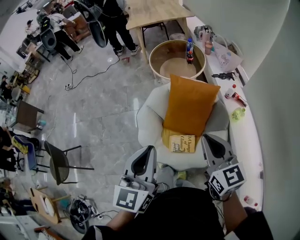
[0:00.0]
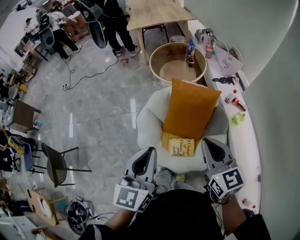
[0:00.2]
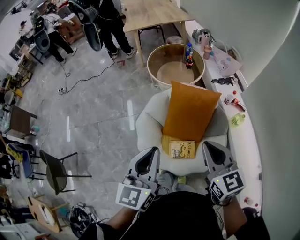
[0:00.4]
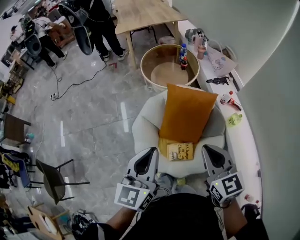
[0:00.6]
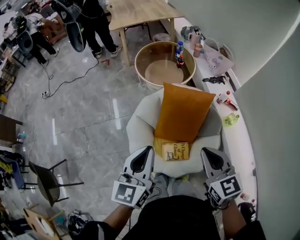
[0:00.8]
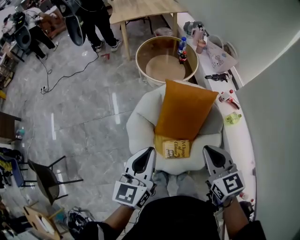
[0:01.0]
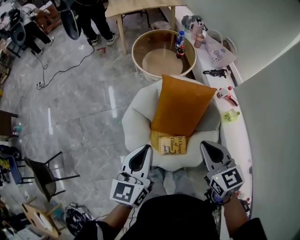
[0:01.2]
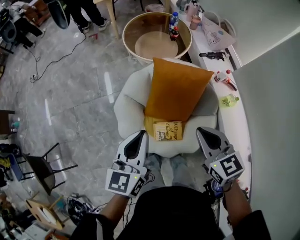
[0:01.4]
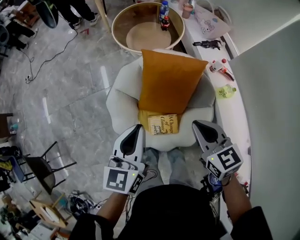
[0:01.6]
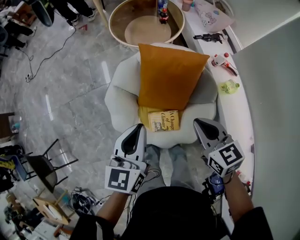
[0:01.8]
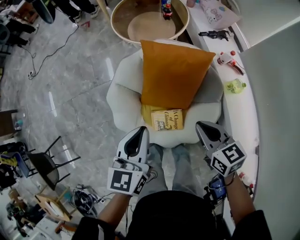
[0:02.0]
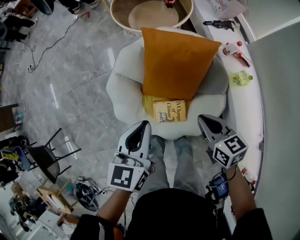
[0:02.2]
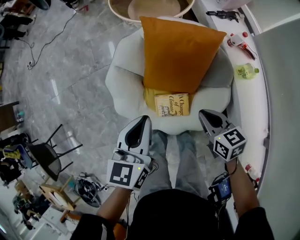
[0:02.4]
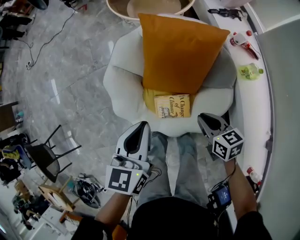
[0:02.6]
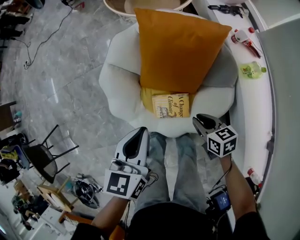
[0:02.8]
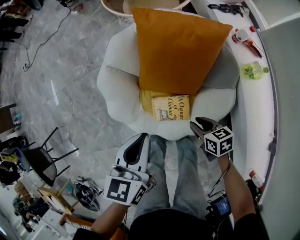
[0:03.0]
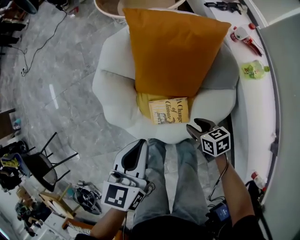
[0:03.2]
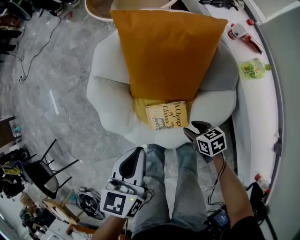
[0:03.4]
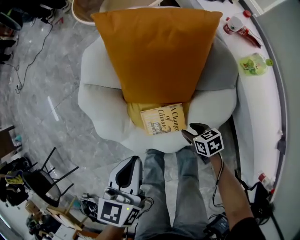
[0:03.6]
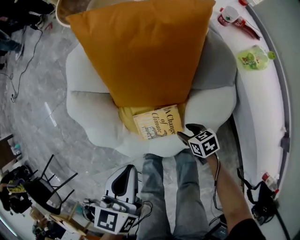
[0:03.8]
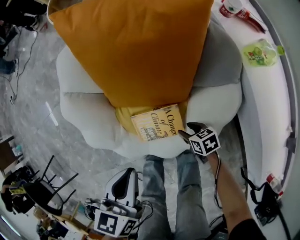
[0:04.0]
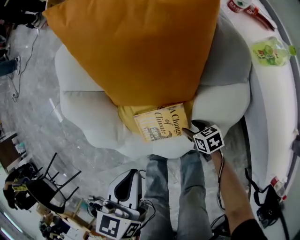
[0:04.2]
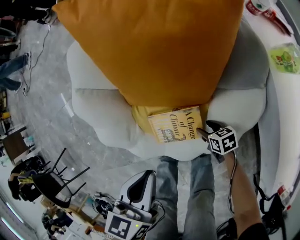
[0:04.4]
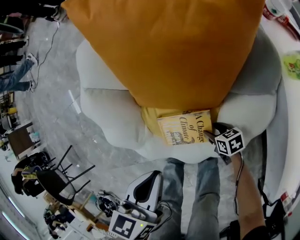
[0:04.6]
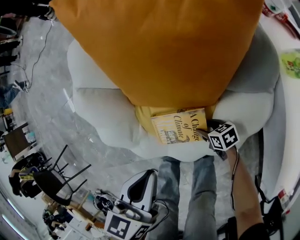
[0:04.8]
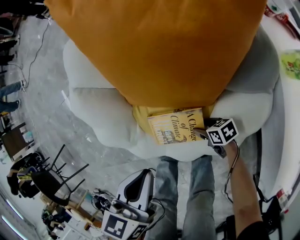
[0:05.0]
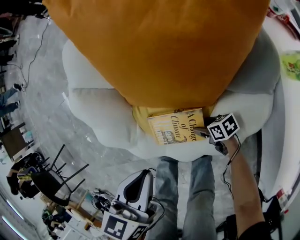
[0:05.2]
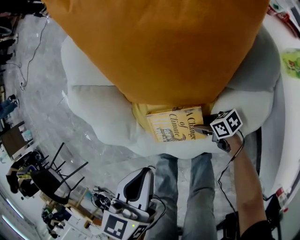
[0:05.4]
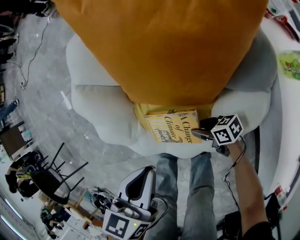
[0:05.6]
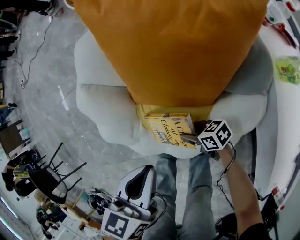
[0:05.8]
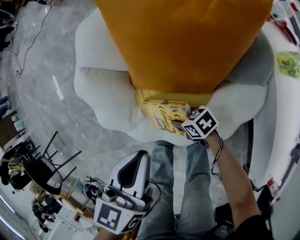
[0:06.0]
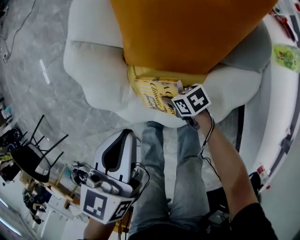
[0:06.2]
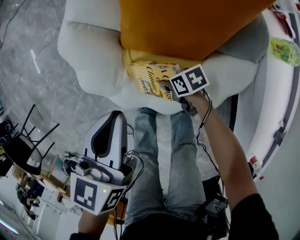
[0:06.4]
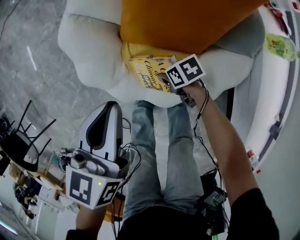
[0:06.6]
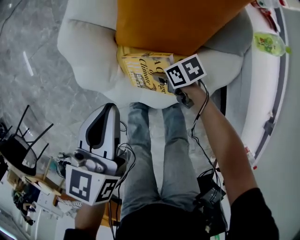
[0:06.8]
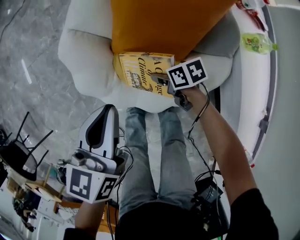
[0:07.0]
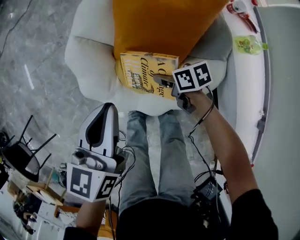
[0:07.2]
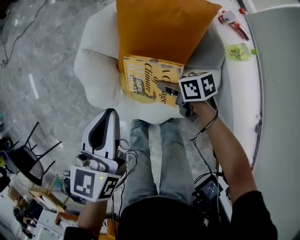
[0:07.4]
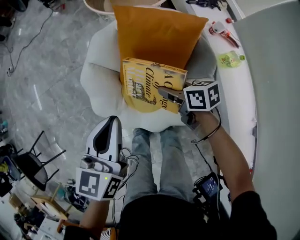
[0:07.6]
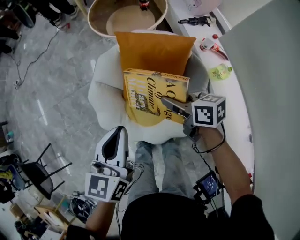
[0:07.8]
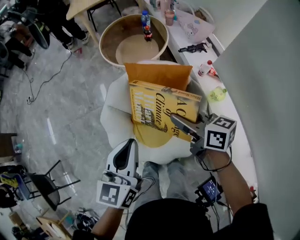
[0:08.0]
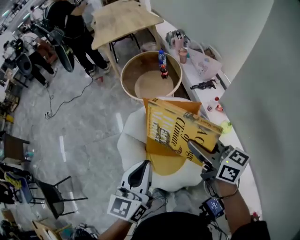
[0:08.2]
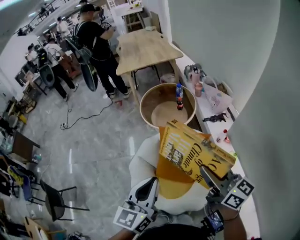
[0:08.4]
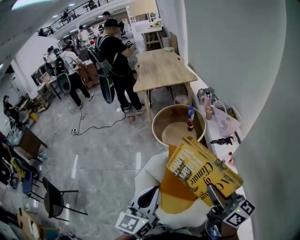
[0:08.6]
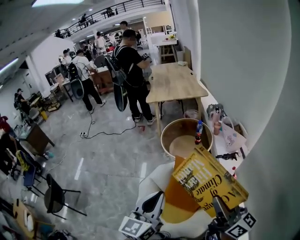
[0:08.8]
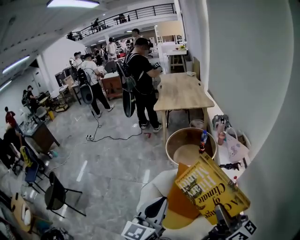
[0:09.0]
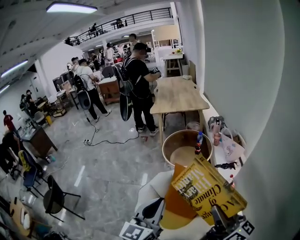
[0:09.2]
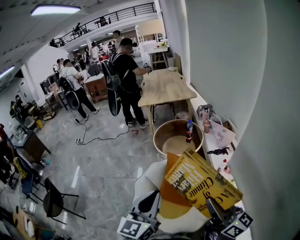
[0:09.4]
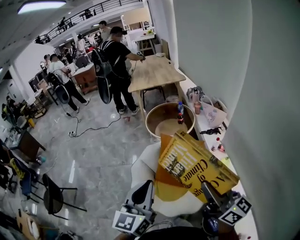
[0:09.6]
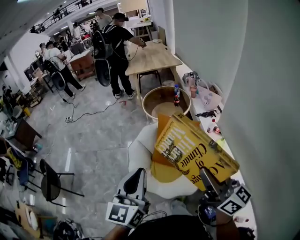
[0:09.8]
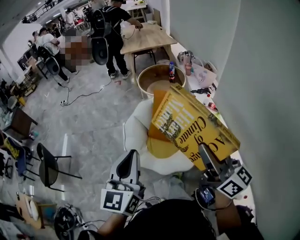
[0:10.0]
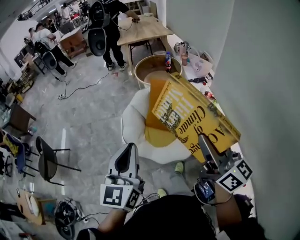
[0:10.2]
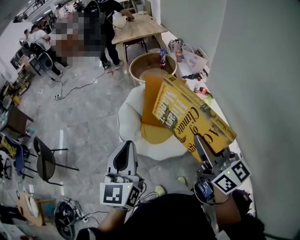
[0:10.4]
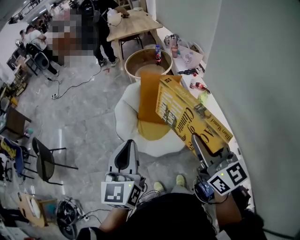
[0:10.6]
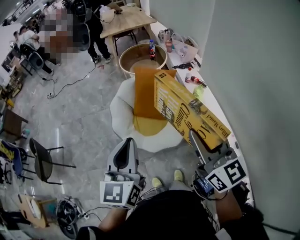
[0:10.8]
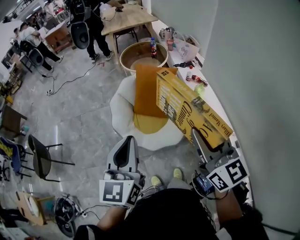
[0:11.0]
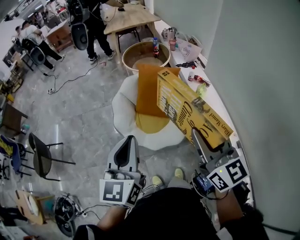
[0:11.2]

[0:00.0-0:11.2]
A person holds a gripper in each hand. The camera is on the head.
0.0 to 1.6 s: The two grippers go roughly 20 cm forward and downward. The right gripper changes its angle by some 20 degrees.
1.6 to 3.2 s: The left gripper goes roughly 20 cm downward; the right gripper heads downward, covering some 40 cm, rotates approximately 30 degrees, and opens up.
3.2 to 4.8 s: The left gripper moves downward, some 15 cm. The right gripper shifts roughly 30 cm downward.
4.8 to 6.4 s: The right gripper travels to the left, upward and forward by about 15 cm, and closes, while the left gripper is displaced upward and forward by approximately 10 cm.
6.4 to 8.0 s: The left gripper moves upward, some 35 cm, and turns by roughly 20 degrees. The right gripper travels upward by about 60 cm, and tips its fingers upward by roughly 30 degrees.
8.0 to 9.6 s: Both grippers move upward and backward, approximately 35 cm. The right gripper tilts its fingers roughly 30 degrees upward. Meanwhile the left gripper swivels approximately 30 degrees.
9.6 to 11.2 s: Both grippers move backward, approximately 25 cm. The right gripper turns by about 30 degrees.

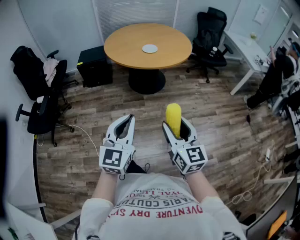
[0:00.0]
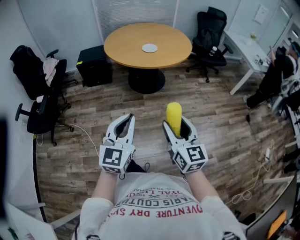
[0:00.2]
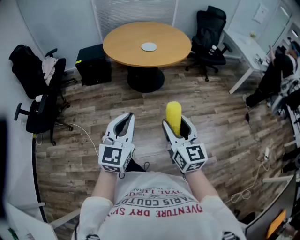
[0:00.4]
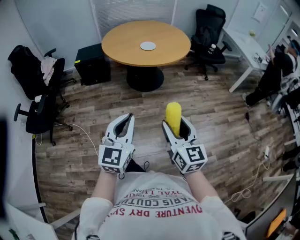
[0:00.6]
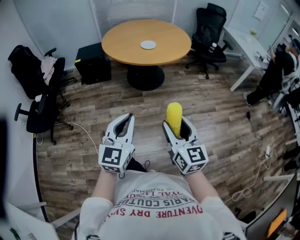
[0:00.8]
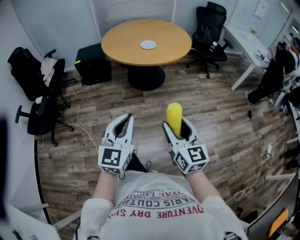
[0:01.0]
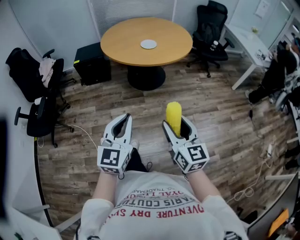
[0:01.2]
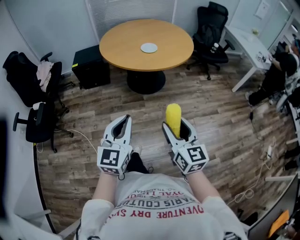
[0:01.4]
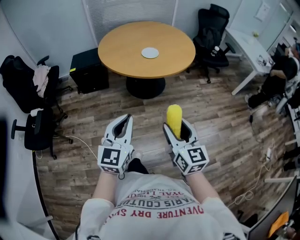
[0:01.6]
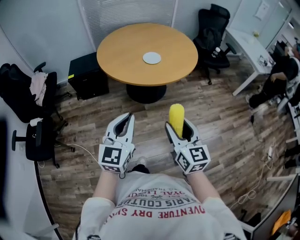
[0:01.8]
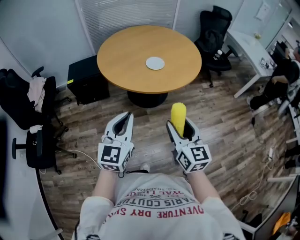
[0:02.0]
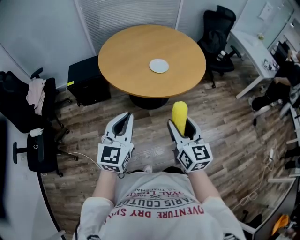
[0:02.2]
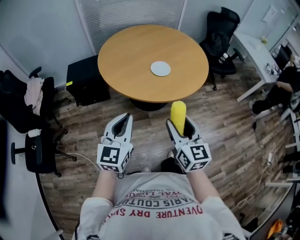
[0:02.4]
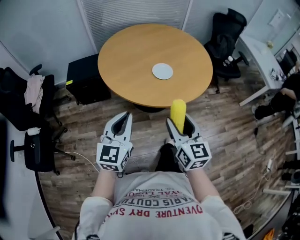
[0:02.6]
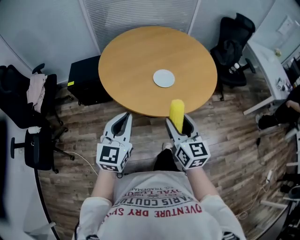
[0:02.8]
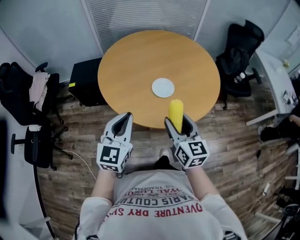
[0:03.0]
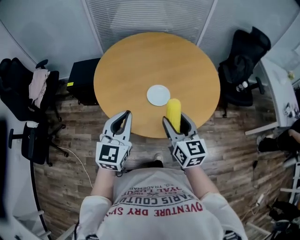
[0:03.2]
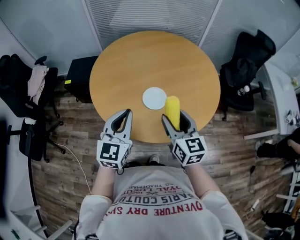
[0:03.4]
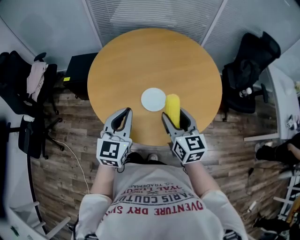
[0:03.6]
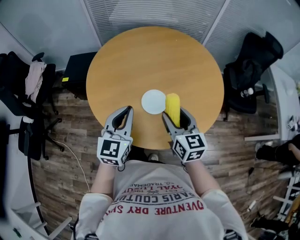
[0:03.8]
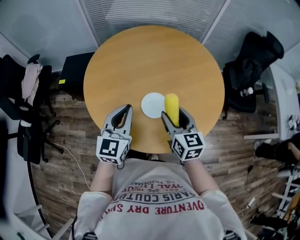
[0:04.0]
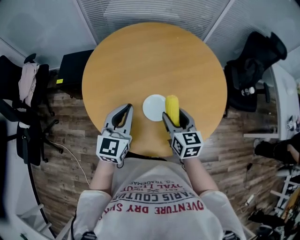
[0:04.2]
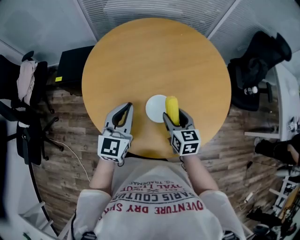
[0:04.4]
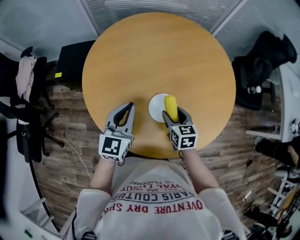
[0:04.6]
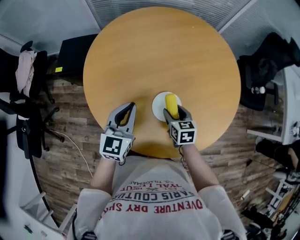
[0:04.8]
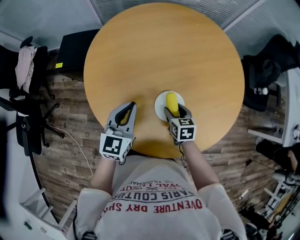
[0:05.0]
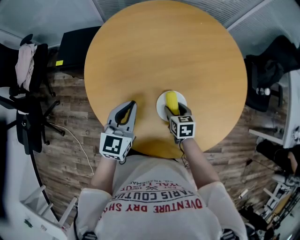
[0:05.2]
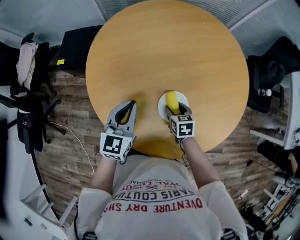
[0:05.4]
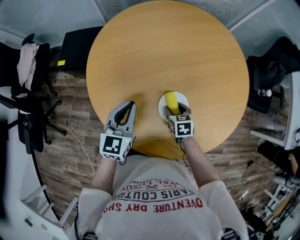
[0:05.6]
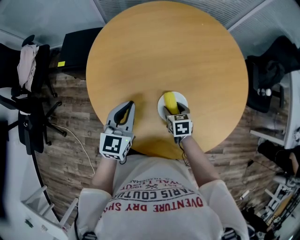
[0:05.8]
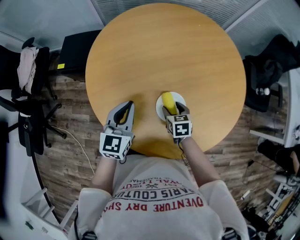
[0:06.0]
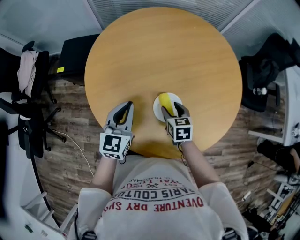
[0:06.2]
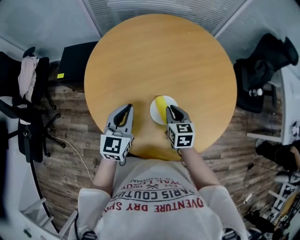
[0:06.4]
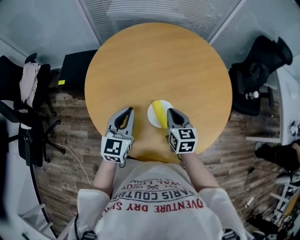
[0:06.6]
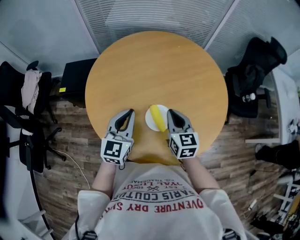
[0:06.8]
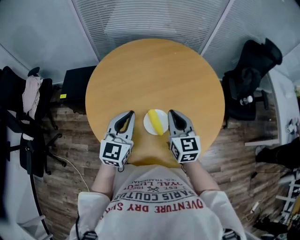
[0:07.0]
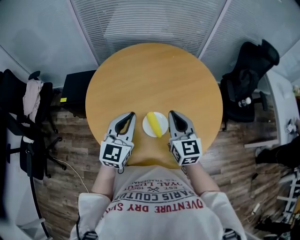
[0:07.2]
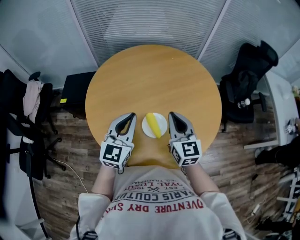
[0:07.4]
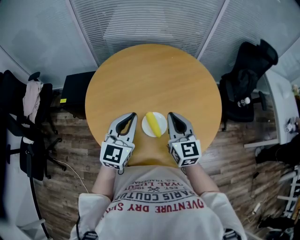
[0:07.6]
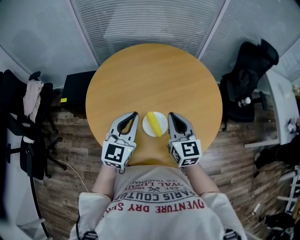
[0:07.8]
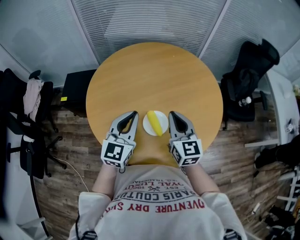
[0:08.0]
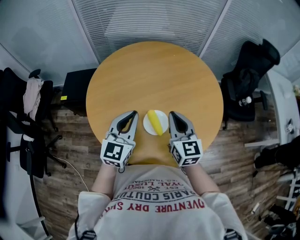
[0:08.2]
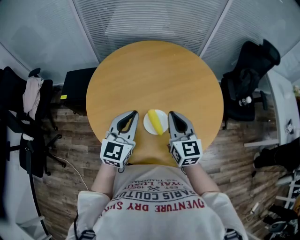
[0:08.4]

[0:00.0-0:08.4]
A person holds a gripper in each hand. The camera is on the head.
0.0 to 1.4 s: Both grippers move forward, some 10 cm.
1.4 to 2.8 s: The pair of grippers is taken forward, some 40 cm.
2.8 to 4.2 s: Both grippers travel together forward, approximately 30 cm.
4.2 to 5.6 s: The left gripper heads downward, to the left and forward, covering some 10 cm. Meanwhile the right gripper goes roughly 20 cm downward, and changes its angle by approximately 30 degrees.
5.6 to 7.0 s: The left gripper moves upward and to the right, approximately 15 cm. Meanwhile the right gripper heads upward, covering roughly 25 cm, angles its fingers upward, by roughly 40 degrees, and closes its fingers.
7.0 to 8.4 s: There are only small adjustments of the grippers.

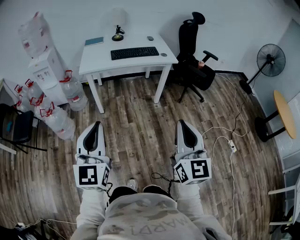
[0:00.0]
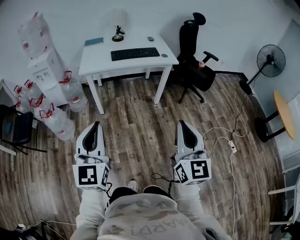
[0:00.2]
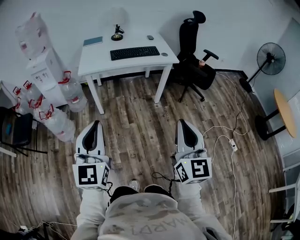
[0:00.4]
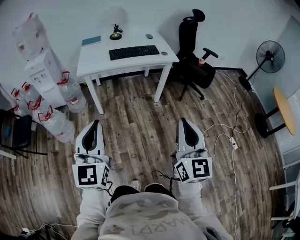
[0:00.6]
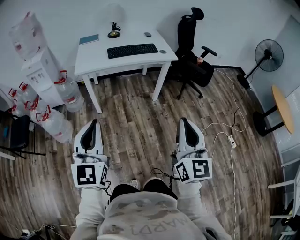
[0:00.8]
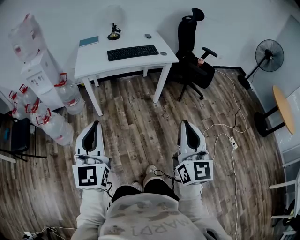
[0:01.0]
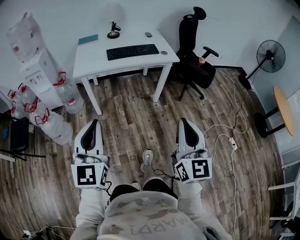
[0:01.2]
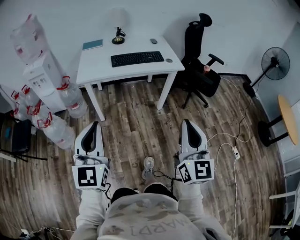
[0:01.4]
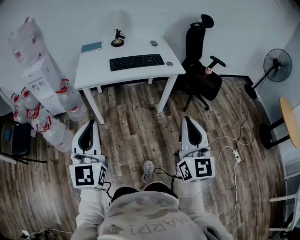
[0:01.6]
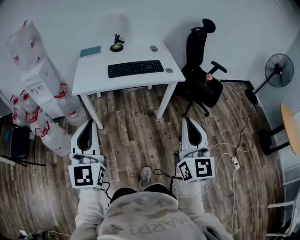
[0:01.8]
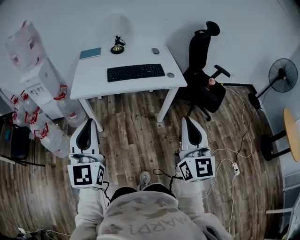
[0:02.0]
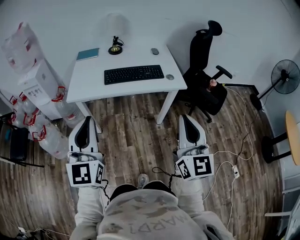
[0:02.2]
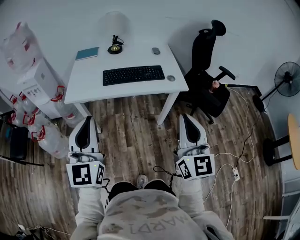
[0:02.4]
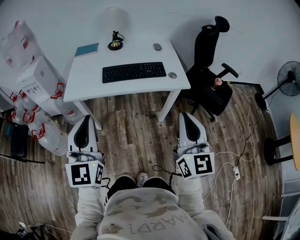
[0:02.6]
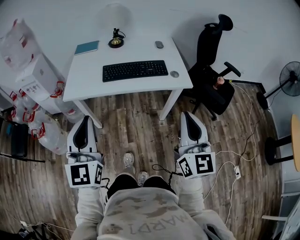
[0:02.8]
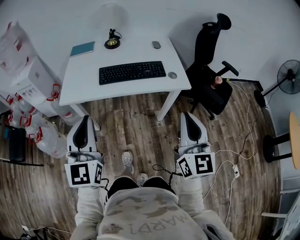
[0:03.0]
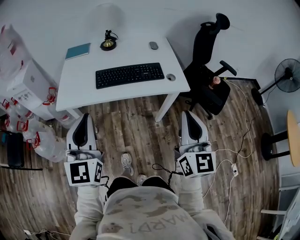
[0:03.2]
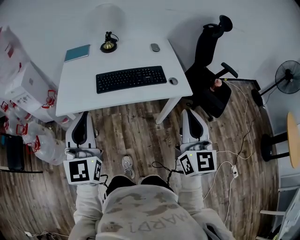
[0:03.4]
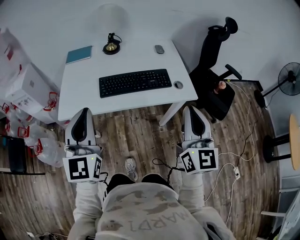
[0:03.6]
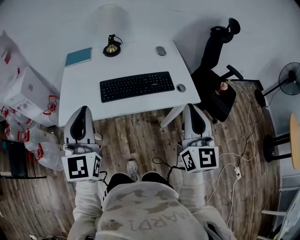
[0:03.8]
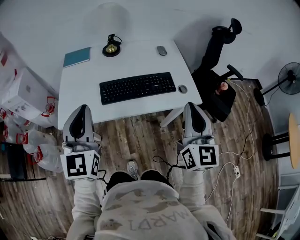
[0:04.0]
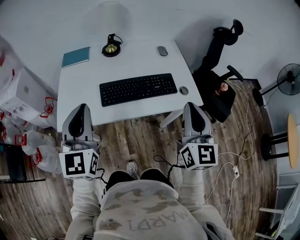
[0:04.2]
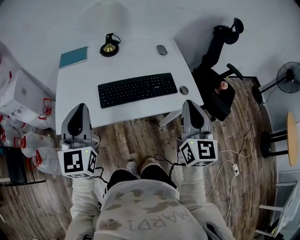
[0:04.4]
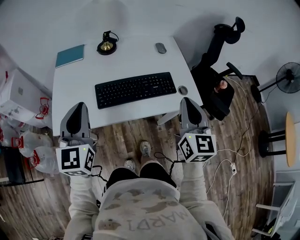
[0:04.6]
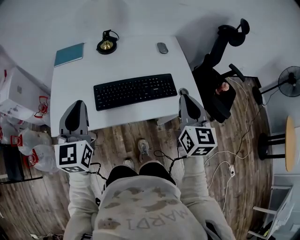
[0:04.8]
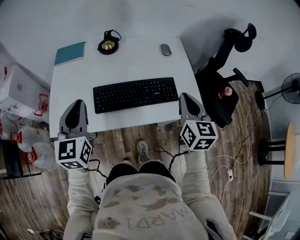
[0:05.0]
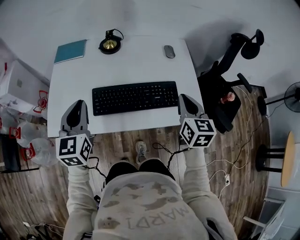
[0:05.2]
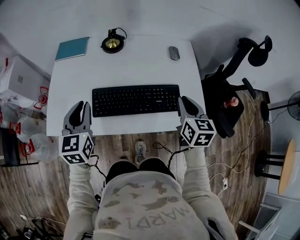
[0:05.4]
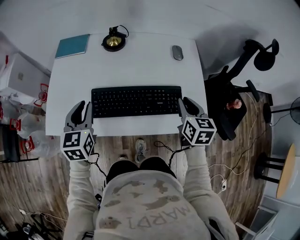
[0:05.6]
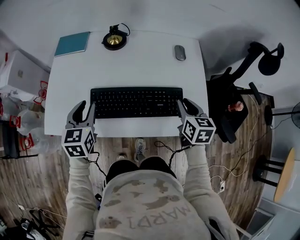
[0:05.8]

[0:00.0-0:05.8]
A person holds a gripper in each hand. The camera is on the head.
0.0 to 1.4 s: The grippers both shift forward by roughly 15 cm.
1.4 to 2.8 s: The grippers both shift forward by roughly 30 cm.
2.8 to 4.4 s: The two grippers go about 30 cm forward.
4.4 to 5.8 s: The left gripper shifts roughly 25 cm downward and forward, changes its angle by approximately 30 degrees, and opens its fingers; the right gripper travels forward and downward by some 30 cm, and tips its fingers downward by roughly 30 degrees.
